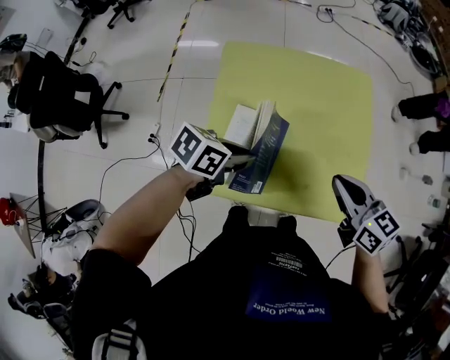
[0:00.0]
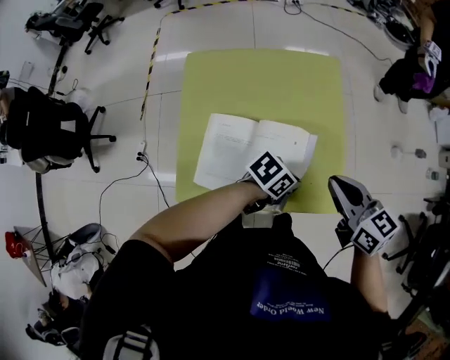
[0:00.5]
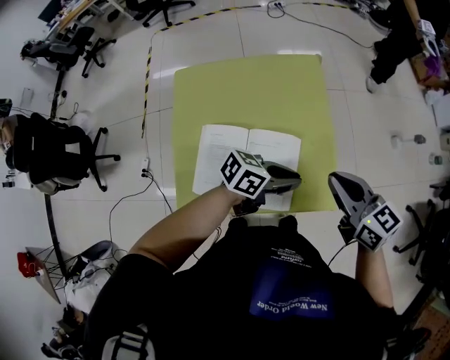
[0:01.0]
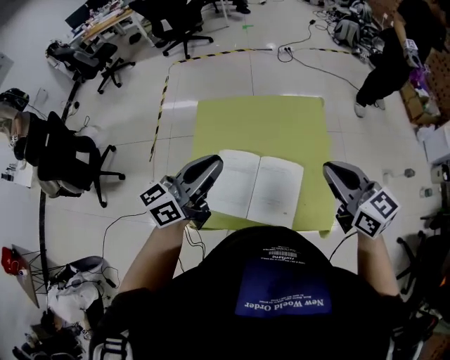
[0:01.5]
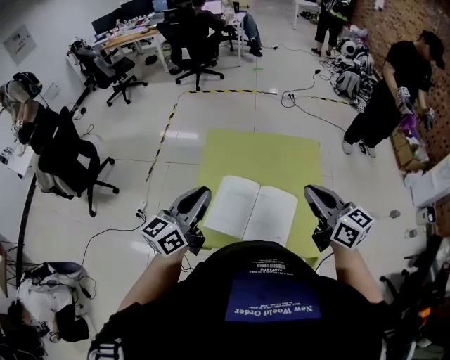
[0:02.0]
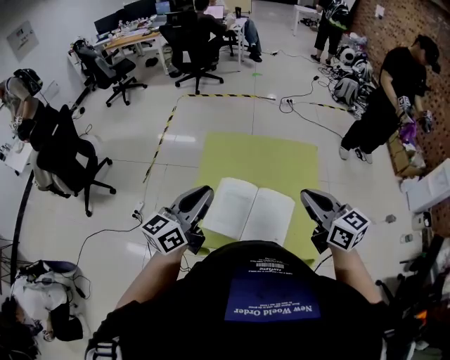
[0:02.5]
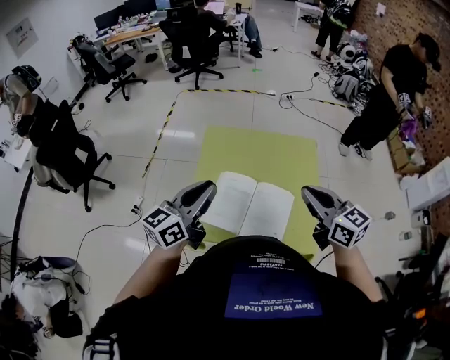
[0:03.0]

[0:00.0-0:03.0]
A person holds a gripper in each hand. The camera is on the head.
0.0 to 1.5 s: The left gripper heads upward, covering approximately 20 cm, and tips its fingers upward by roughly 50 degrees, while the right gripper moves upward, about 15 cm.
1.5 to 3.0 s: The right gripper travels to the left by about 5 cm; the left gripper travels backward and to the left by about 5 cm.

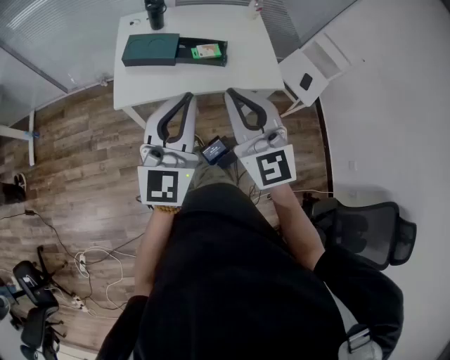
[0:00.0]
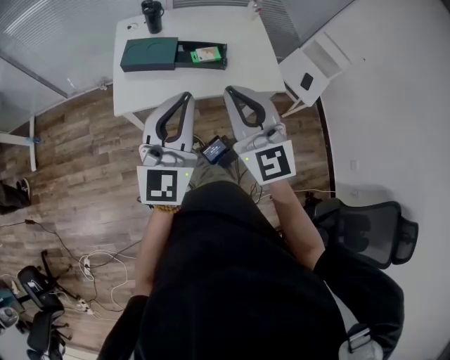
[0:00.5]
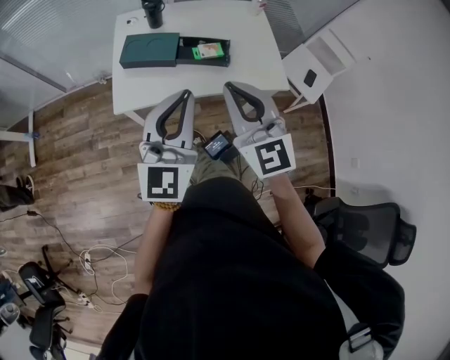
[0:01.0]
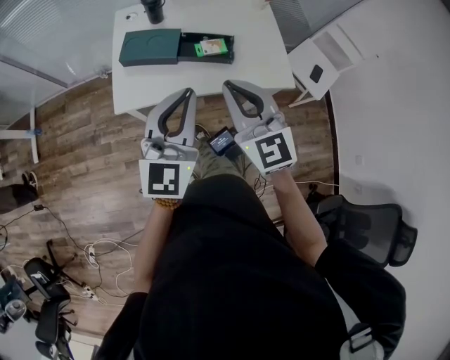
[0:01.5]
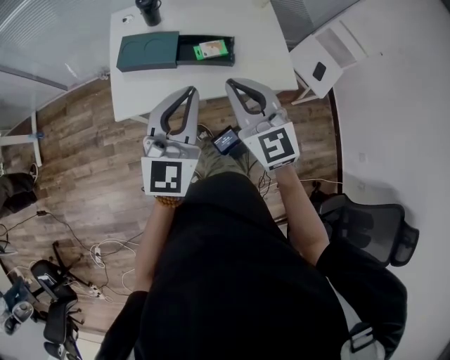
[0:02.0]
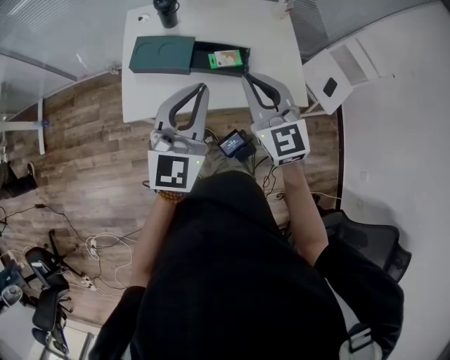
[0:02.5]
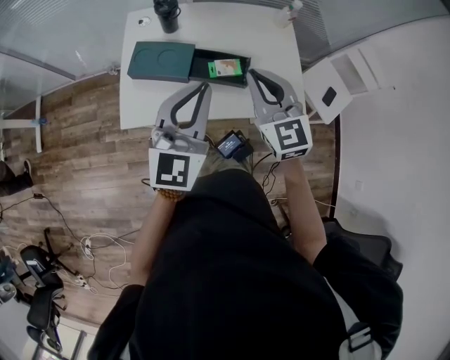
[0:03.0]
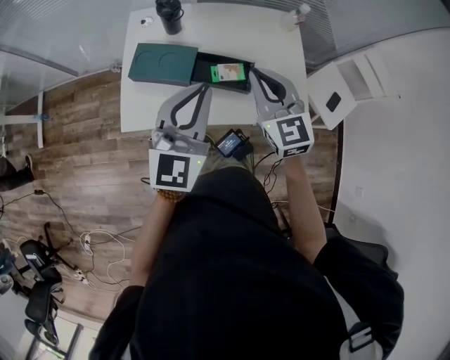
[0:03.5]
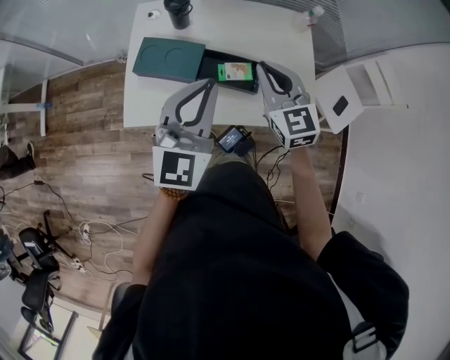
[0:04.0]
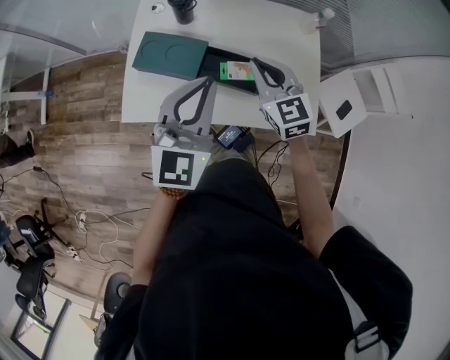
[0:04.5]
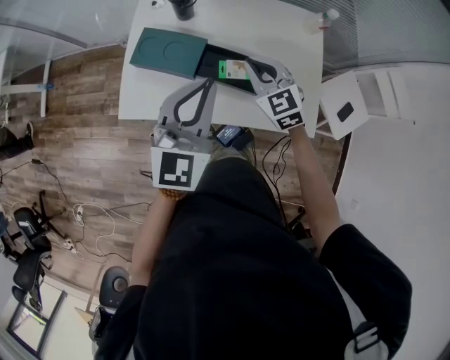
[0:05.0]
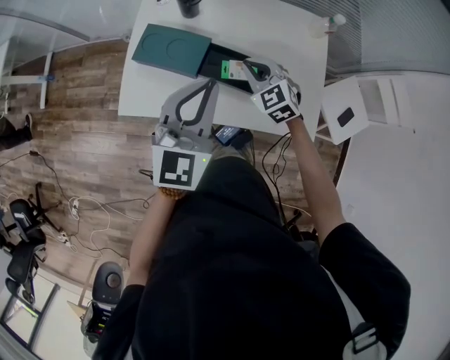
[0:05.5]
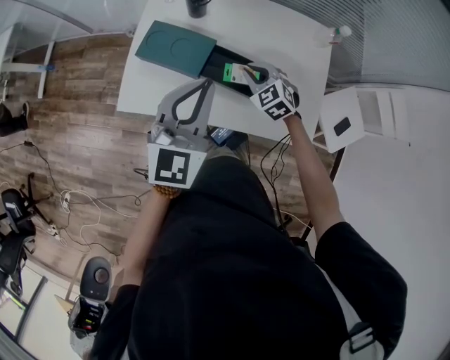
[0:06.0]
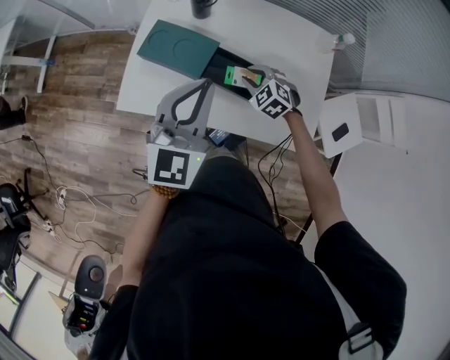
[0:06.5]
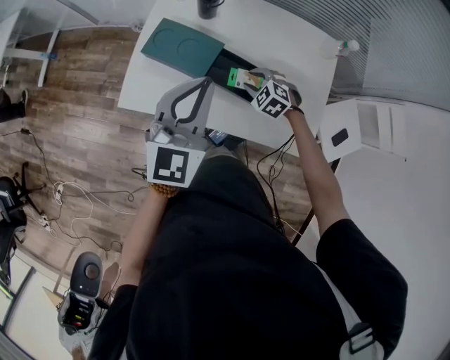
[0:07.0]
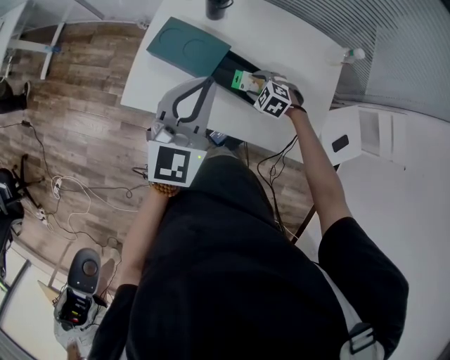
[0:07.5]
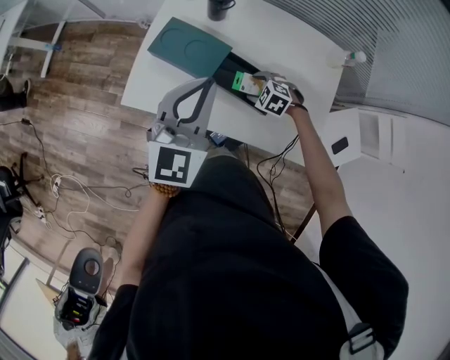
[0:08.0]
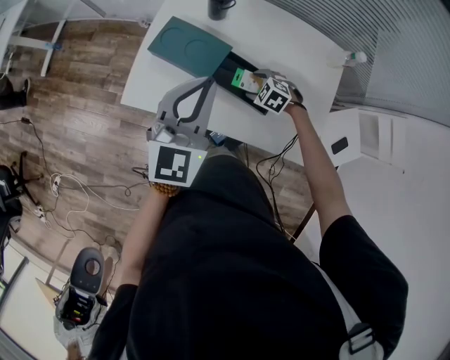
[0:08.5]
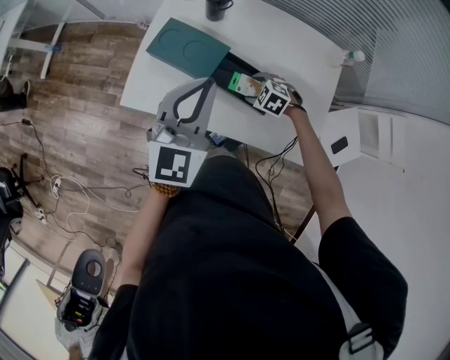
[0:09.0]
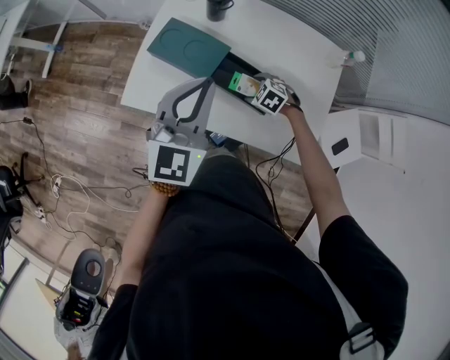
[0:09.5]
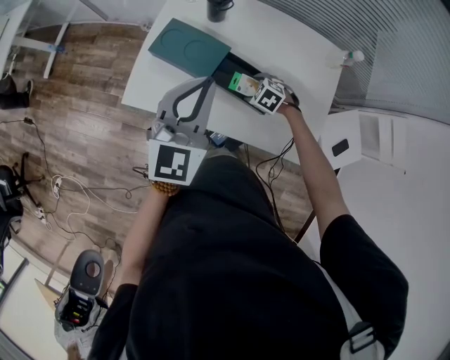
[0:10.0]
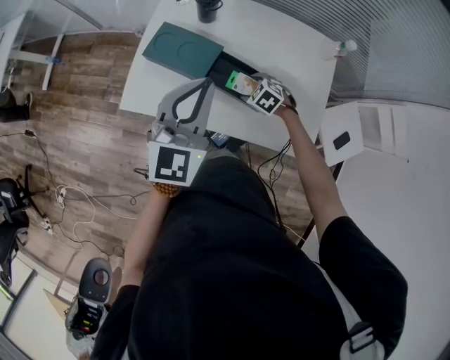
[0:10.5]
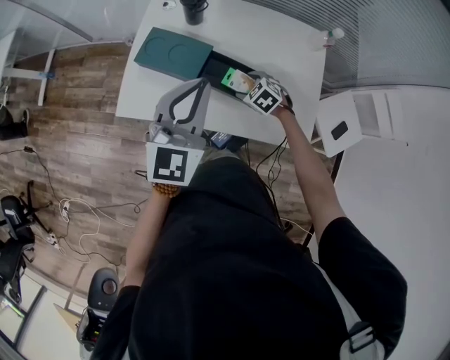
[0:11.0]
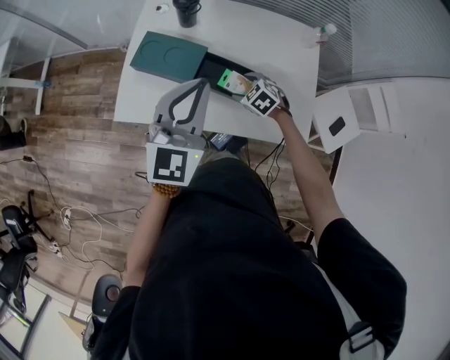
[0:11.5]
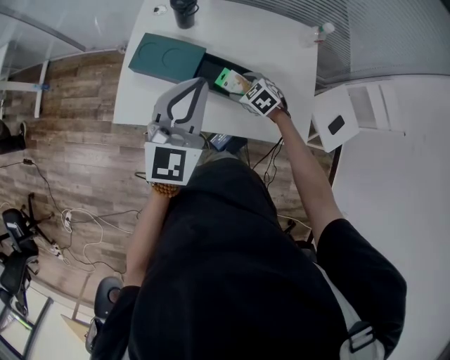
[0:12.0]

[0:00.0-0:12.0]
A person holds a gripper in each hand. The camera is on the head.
0.0 to 2.0 s: The right gripper goes about 15 cm forward and downward. Meanwhile the left gripper travels forward by roughly 15 cm.
2.0 to 4.0 s: Both grippers travel together forward, approximately 20 cm.
4.0 to 6.0 s: The right gripper goes some 20 cm downward, and turns by approximately 40 degrees, while the left gripper shifts by some 5 cm.
6.0 to 8.0 s: The right gripper heads downward, covering about 10 cm, changes its angle by approximately 40 degrees, and opens.
8.0 to 10.0 s: The grippers make only small movements.
10.0 to 12.0 s: The right gripper is displaced upward by roughly 5 cm, and swivels roughly 30 degrees.

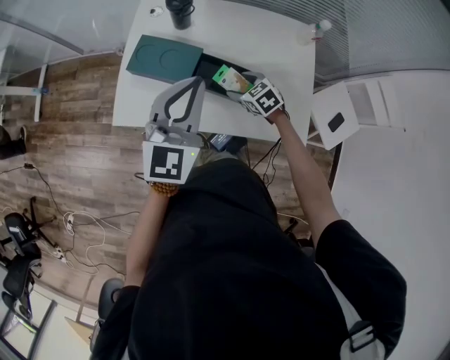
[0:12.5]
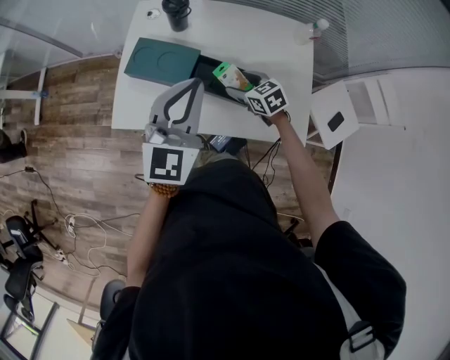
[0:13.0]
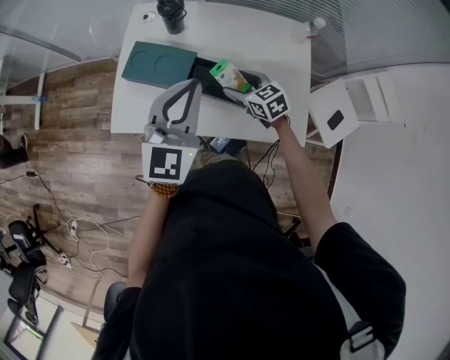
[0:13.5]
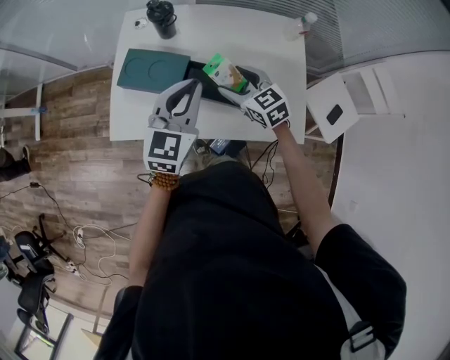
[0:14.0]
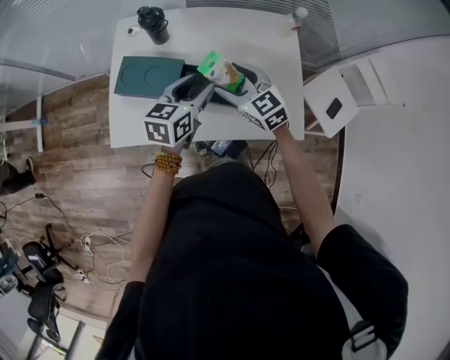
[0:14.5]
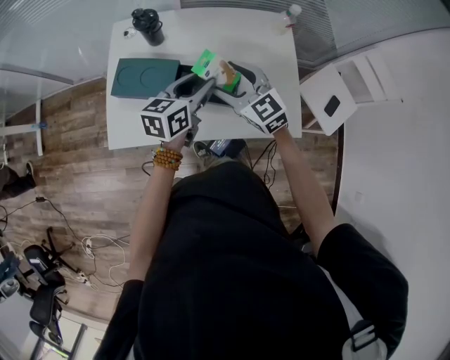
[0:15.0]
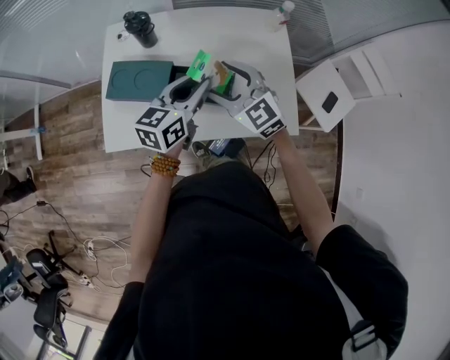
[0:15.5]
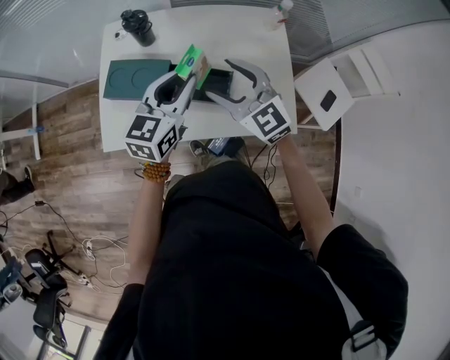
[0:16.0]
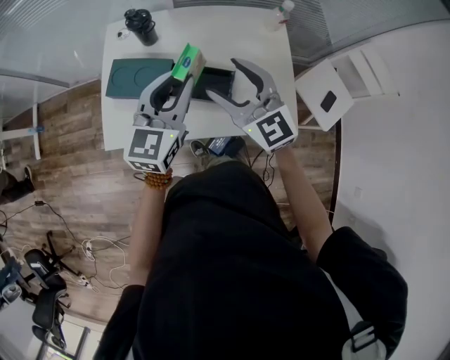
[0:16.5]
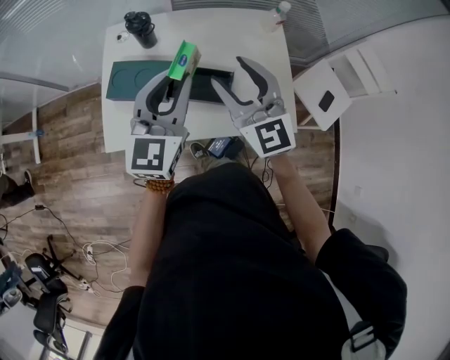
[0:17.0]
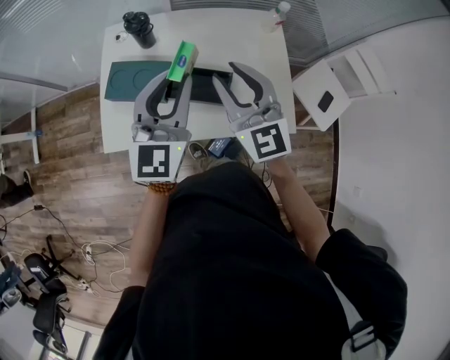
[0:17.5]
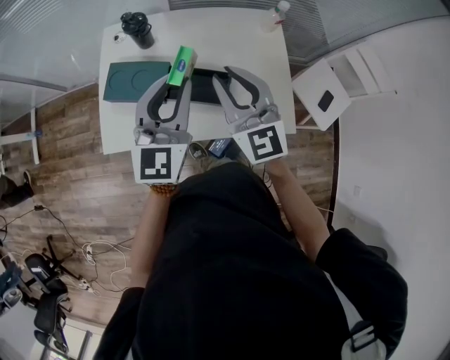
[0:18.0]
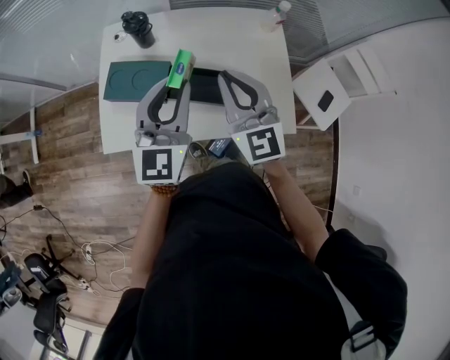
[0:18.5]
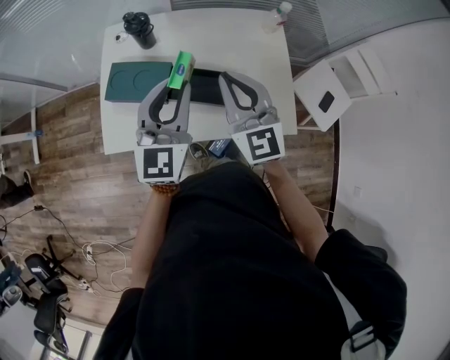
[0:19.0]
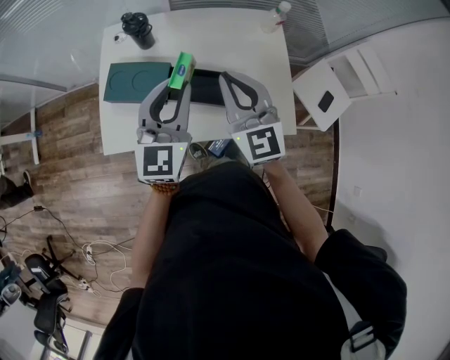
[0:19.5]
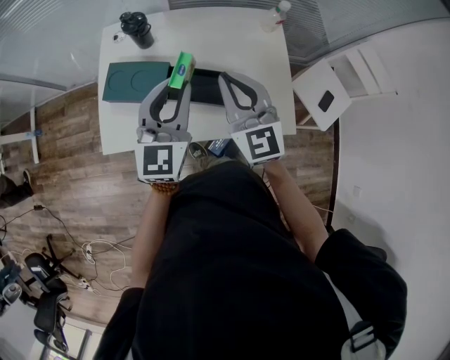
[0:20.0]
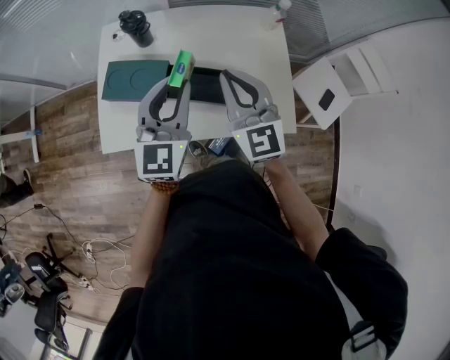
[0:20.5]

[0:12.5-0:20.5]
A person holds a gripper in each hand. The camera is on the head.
12.5 to 14.5 s: The right gripper travels upward by some 15 cm, and swivels some 30 degrees. Meanwhile the left gripper heads downward, to the right and forward, covering roughly 15 cm, rotates roughly 40 degrees, and opens.
14.5 to 16.5 s: The two grippers go roughly 10 cm upward. The left gripper turns by roughly 30 degrees, and closes.
16.5 to 18.5 s: The right gripper closes.
18.5 to 20.5 s: The grippers move only a little.

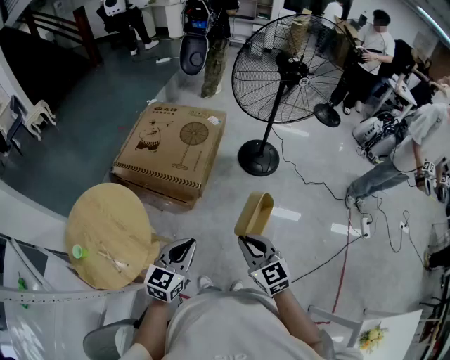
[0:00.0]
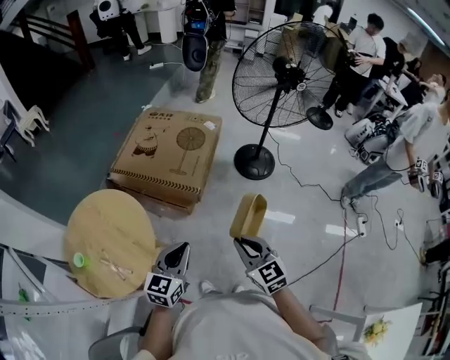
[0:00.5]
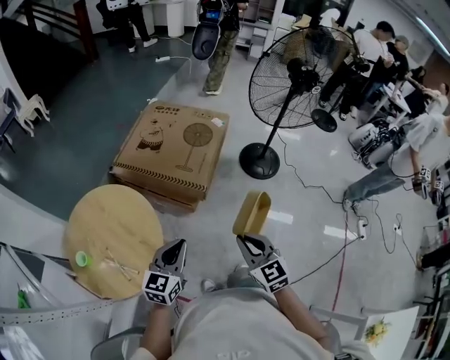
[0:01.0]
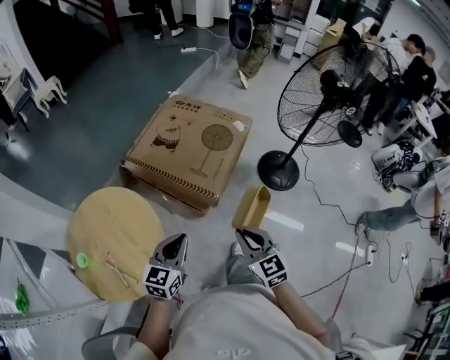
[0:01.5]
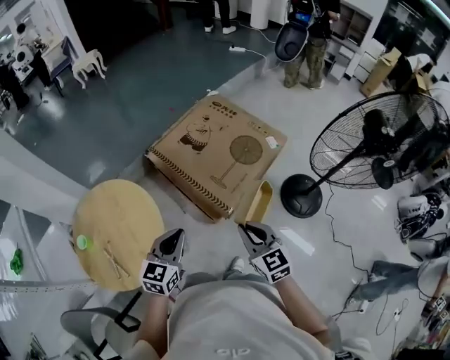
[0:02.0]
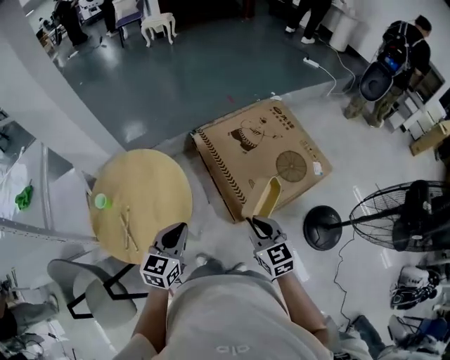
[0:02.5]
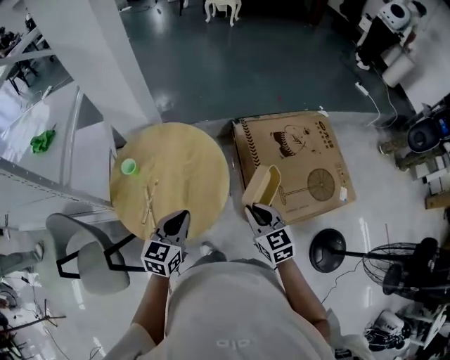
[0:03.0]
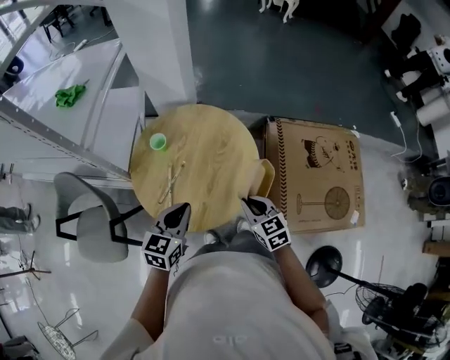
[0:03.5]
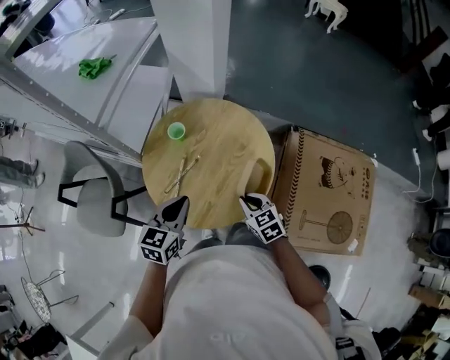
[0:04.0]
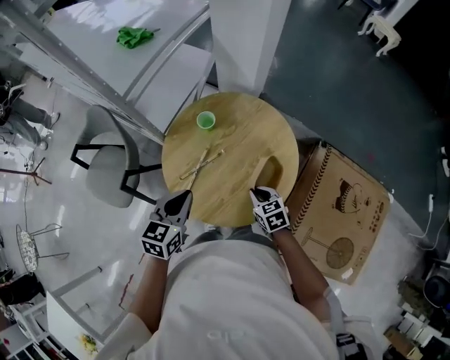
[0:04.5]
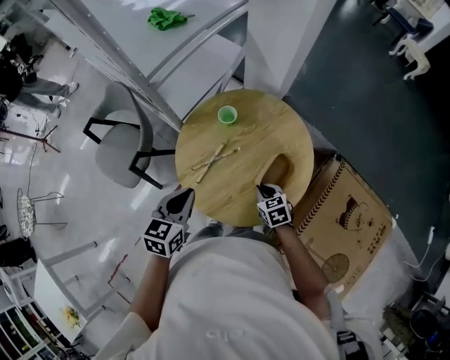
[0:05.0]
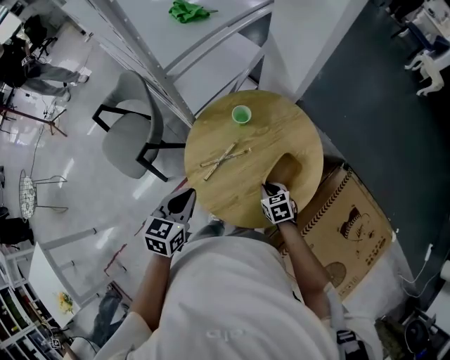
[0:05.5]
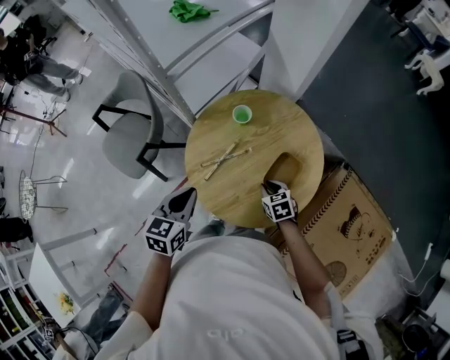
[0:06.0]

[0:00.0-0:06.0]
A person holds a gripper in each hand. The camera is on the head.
0.0 to 2.0 s: The left gripper ends up roughly 30 cm from where it was, and turns by about 30 degrees; the right gripper moves about 35 cm, and changes its angle by approximately 20 degrees.
2.0 to 4.0 s: The right gripper changes place by roughly 50 cm, and turns by some 70 degrees. Meanwhile the left gripper changes place by approximately 40 cm, and turns by some 60 degrees.
4.0 to 6.0 s: The right gripper goes about 15 cm downward and forward. Meanwhile the left gripper shifts about 10 cm to the left, and turns by roughly 30 degrees.
